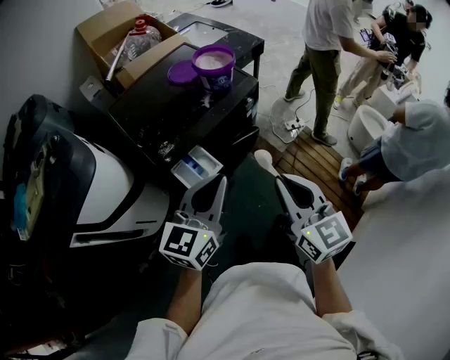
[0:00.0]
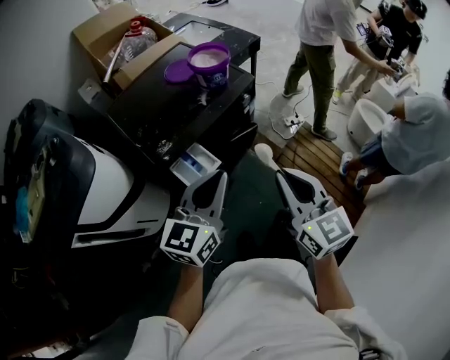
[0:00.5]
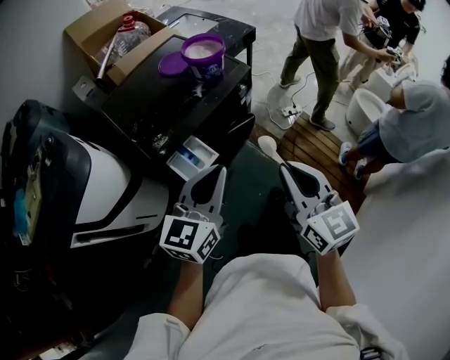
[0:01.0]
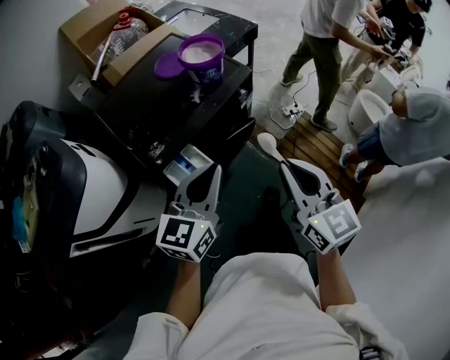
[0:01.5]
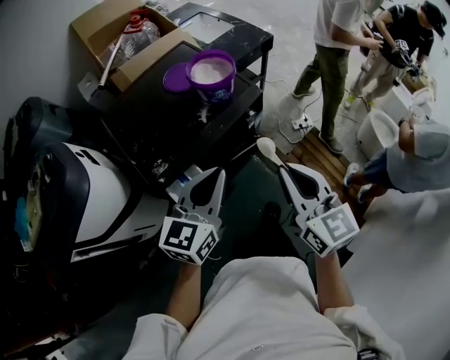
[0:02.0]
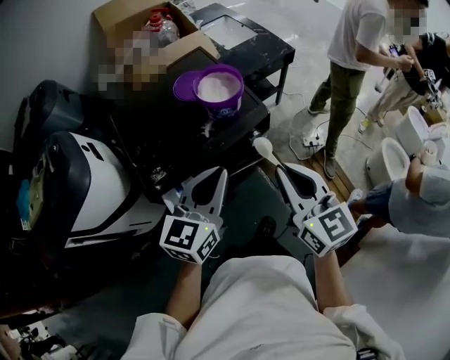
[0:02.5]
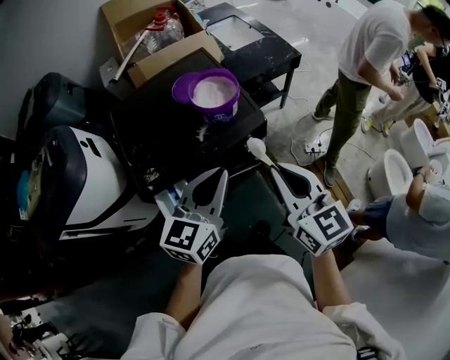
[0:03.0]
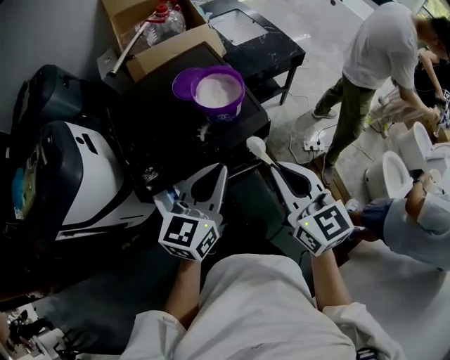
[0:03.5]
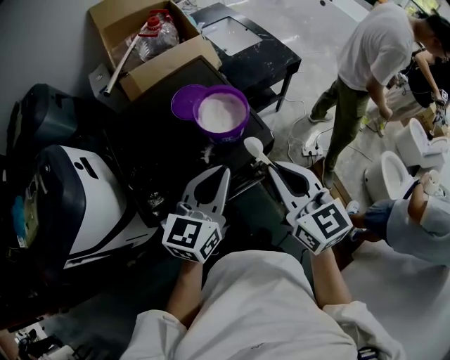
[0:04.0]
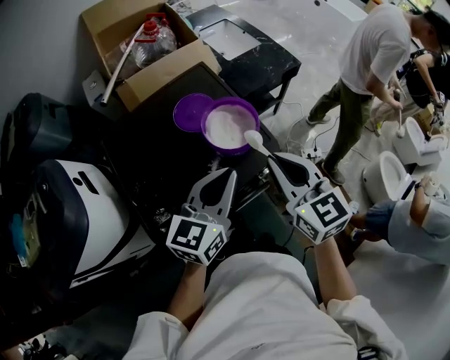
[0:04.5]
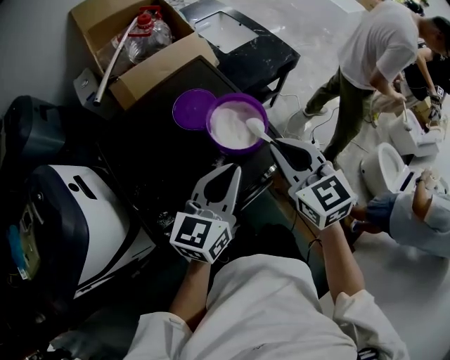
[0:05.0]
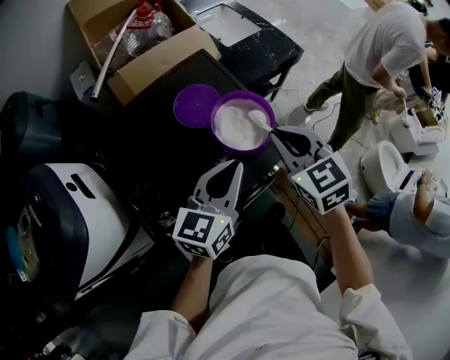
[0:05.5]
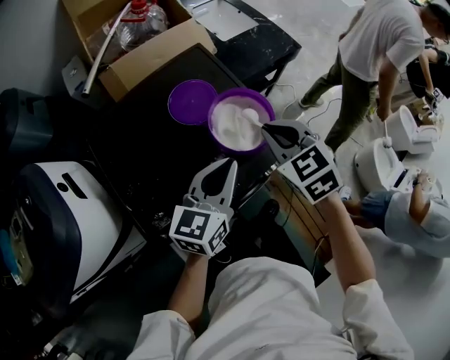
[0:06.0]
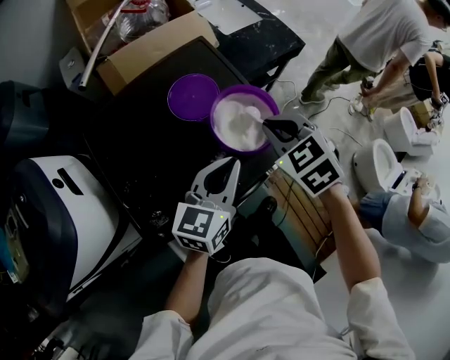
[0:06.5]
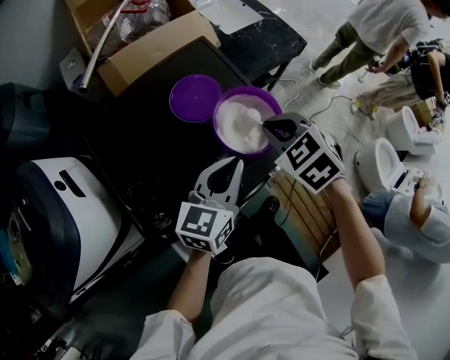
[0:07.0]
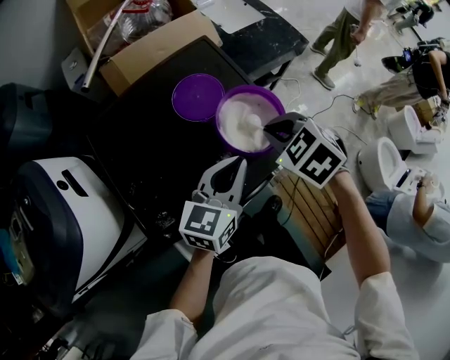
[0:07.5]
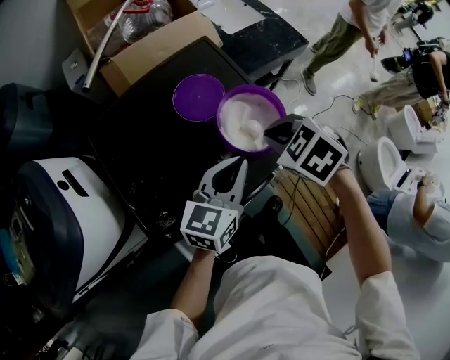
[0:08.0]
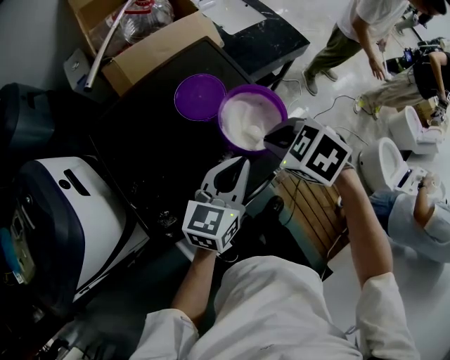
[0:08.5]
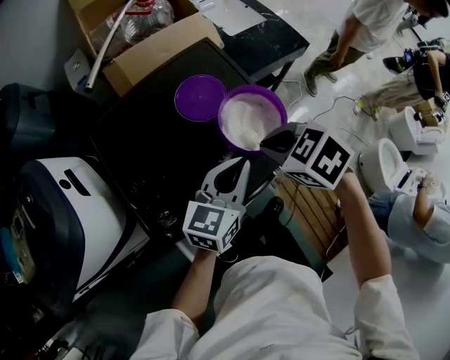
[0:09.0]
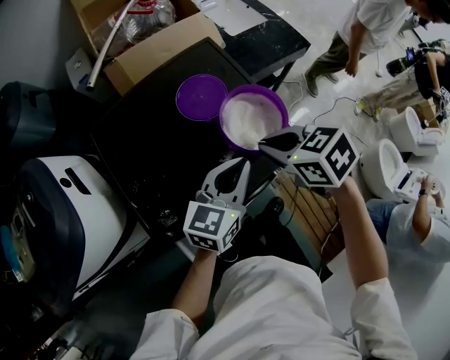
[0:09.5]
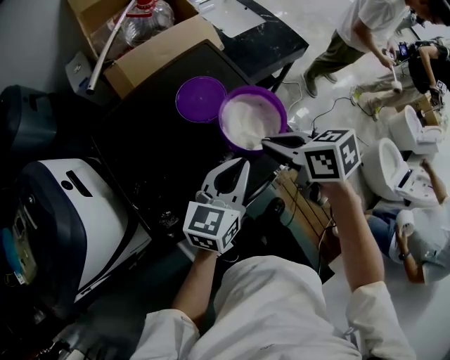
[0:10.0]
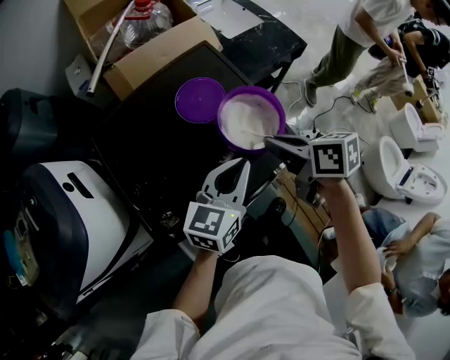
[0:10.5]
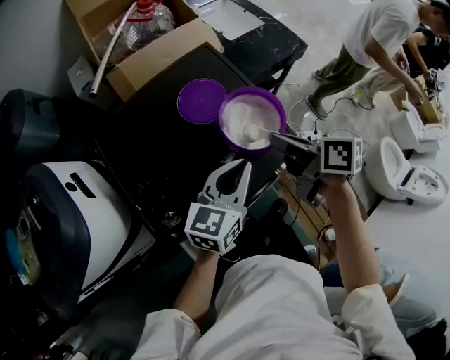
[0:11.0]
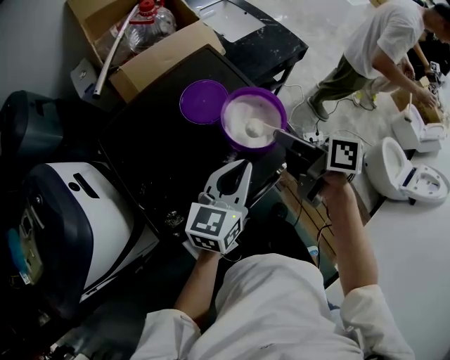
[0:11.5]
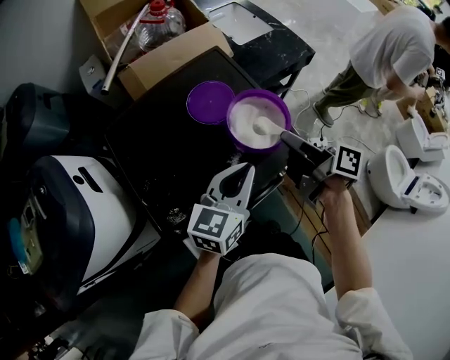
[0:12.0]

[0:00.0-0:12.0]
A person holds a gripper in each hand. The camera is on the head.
0:00.0 to 0:02.0: The grippers both shift forward by about 15 cm.
0:02.0 to 0:04.0: Both grippers move forward, about 20 cm.
0:04.0 to 0:06.0: The left gripper moves forward and downward, approximately 10 cm. Meanwhile the right gripper travels forward, downward and to the left by approximately 20 cm, and rotates about 40 degrees.
0:06.0 to 0:08.0: The right gripper rotates about 30 degrees.
0:08.0 to 0:10.0: The right gripper swivels roughly 50 degrees.
0:10.0 to 0:12.0: The right gripper moves some 5 cm, and tilts its fingers approximately 30 degrees upward.

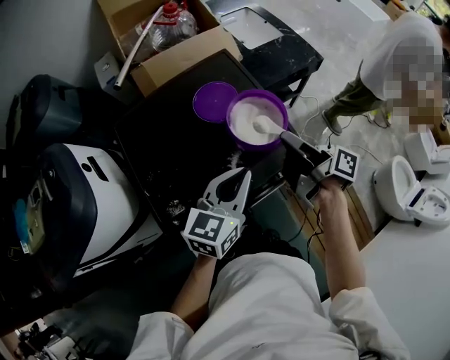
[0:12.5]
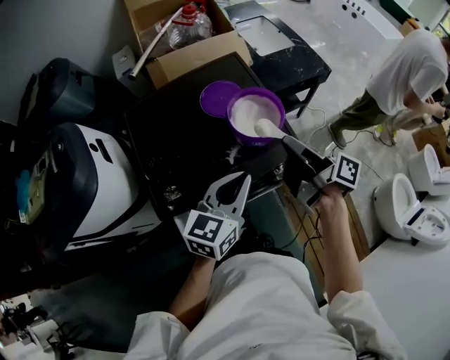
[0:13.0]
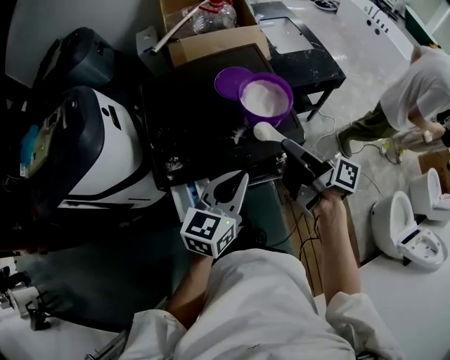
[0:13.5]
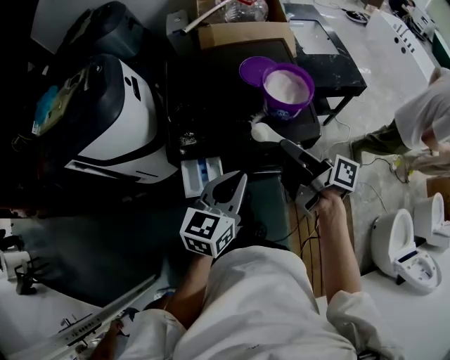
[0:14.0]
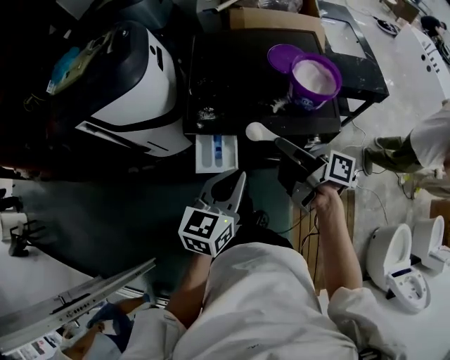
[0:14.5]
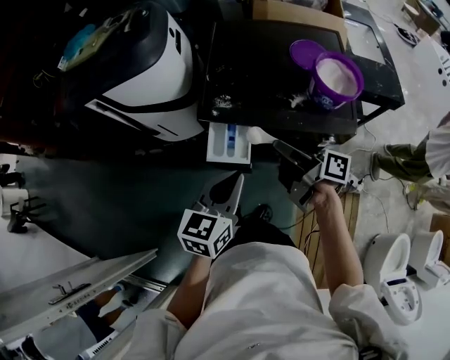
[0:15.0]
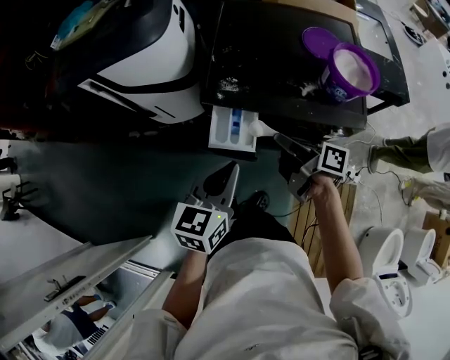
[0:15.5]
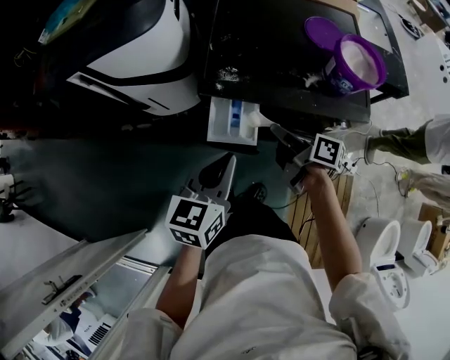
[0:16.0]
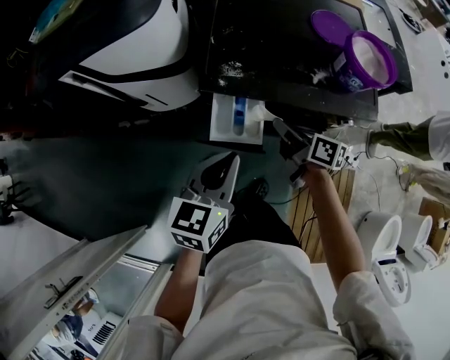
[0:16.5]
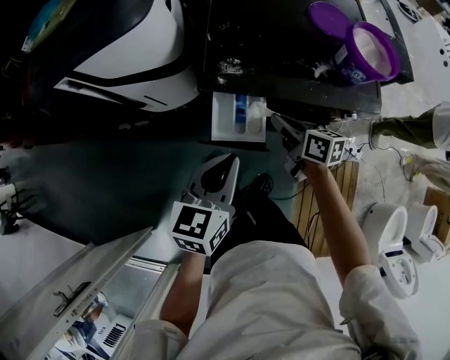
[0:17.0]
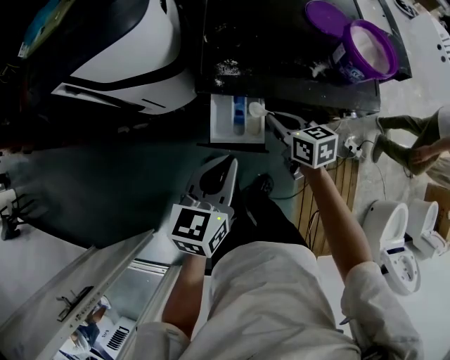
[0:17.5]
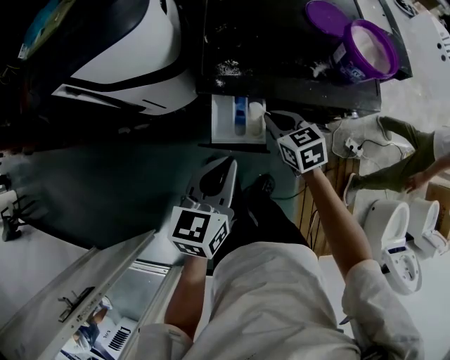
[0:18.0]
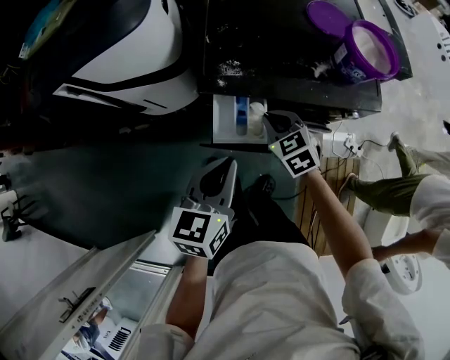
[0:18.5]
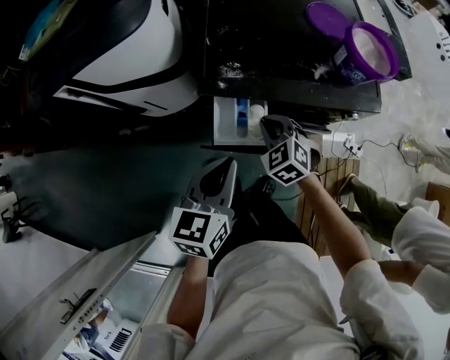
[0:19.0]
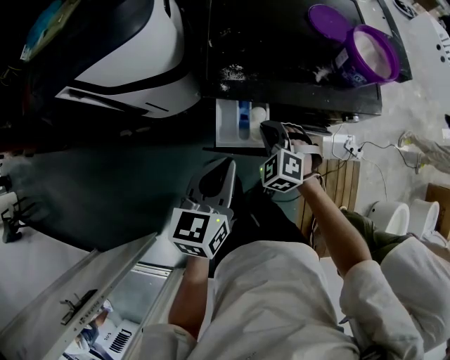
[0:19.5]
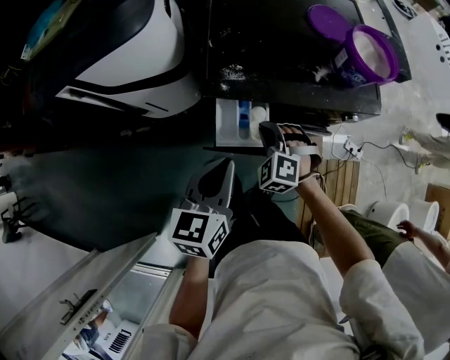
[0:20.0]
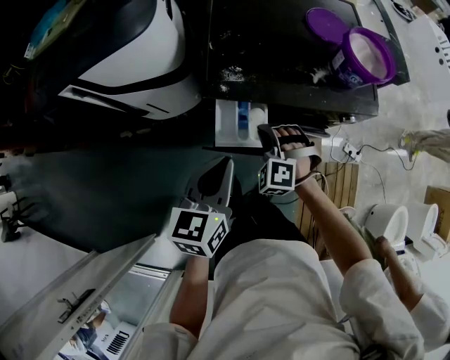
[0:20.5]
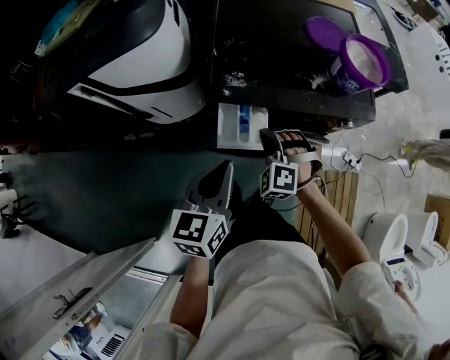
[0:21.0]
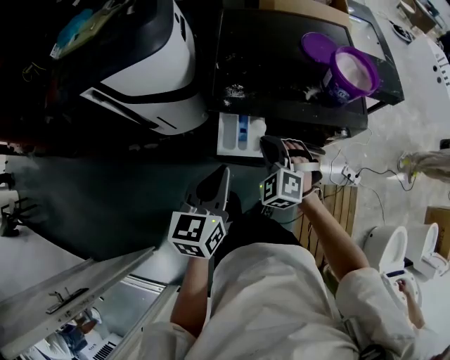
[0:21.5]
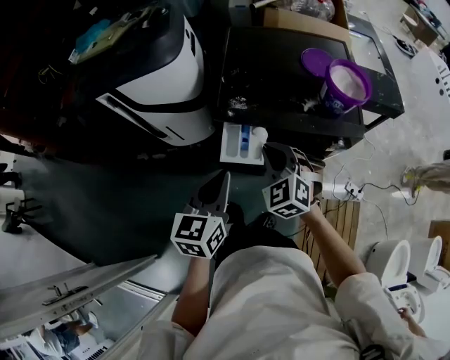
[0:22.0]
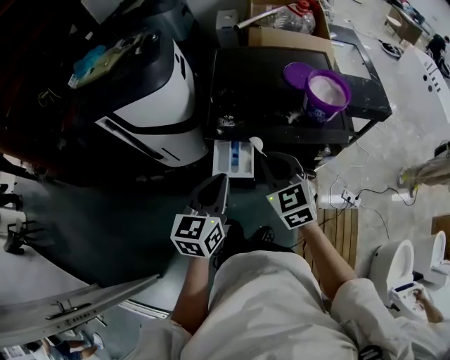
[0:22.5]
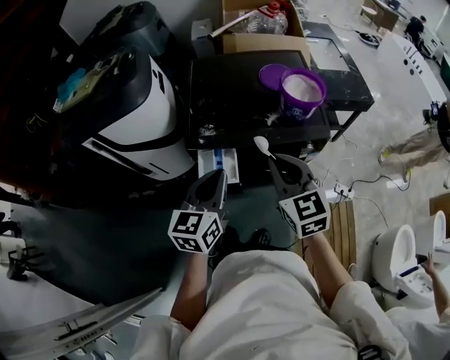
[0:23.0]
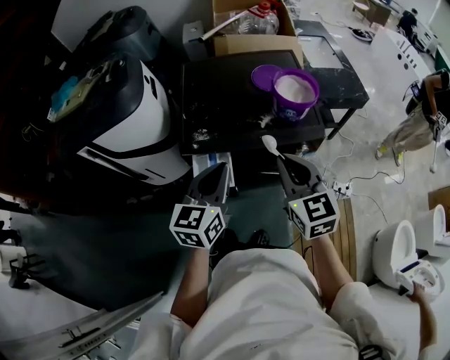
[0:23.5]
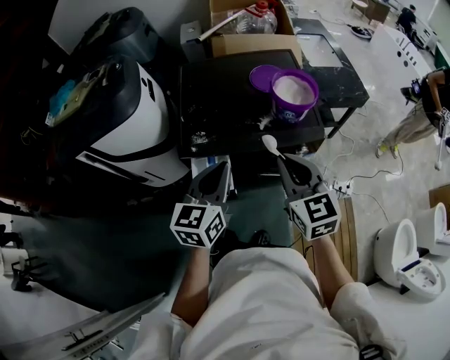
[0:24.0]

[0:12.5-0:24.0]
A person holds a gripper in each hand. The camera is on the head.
0:12.5 to 0:14.5: The right gripper shifts by some 20 cm, and changes its angle by roughly 40 degrees. The left gripper changes place by approximately 25 cm, and rotates approximately 30 degrees.
0:14.5 to 0:16.5: The left gripper heads to the left and downward, covering some 10 cm. Meanwhile the right gripper shifts about 20 cm downward and to the left, and rotates about 30 degrees.
0:16.5 to 0:18.5: The right gripper shifts by some 5 cm, and rotates around the line of its fingers by roughly 60 degrees, counterclockwise from behind.
0:18.5 to 0:20.0: The right gripper swivels roughly 40 degrees.
0:20.0 to 0:22.0: The right gripper heads upward, covering roughly 15 cm, and rotates some 20 degrees. Meanwhile the left gripper heads upward, covering approximately 5 cm.
0:22.0 to 0:24.0: The left gripper goes approximately 15 cm to the right and forward. Meanwhile the right gripper goes roughly 20 cm to the right and upward, and rotates about 40 degrees.

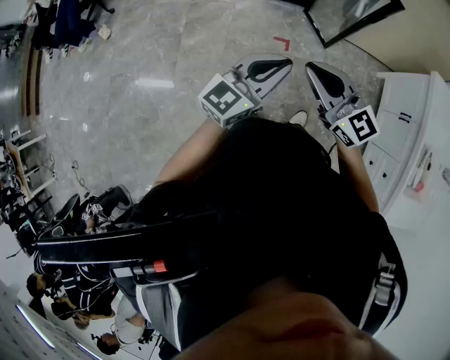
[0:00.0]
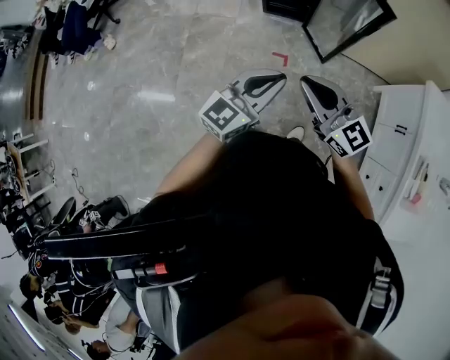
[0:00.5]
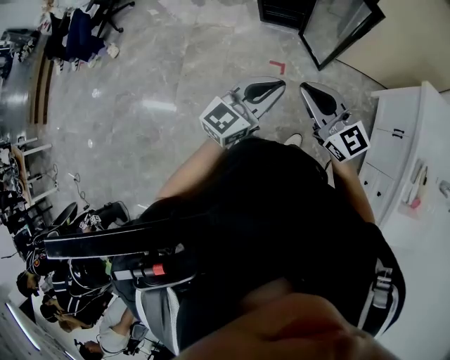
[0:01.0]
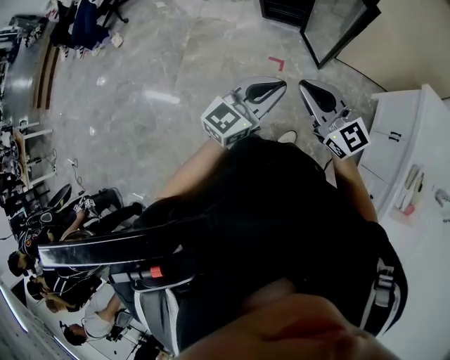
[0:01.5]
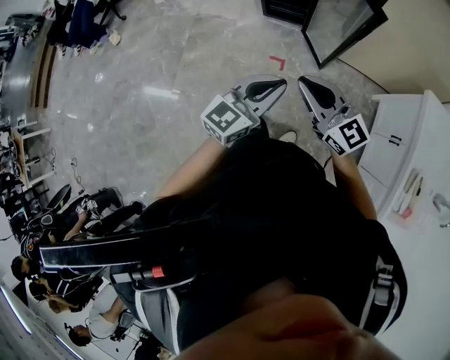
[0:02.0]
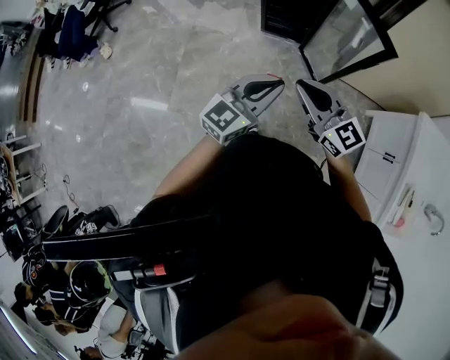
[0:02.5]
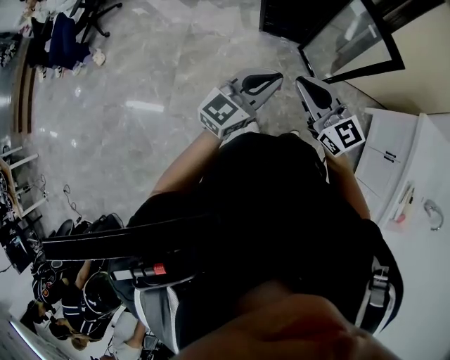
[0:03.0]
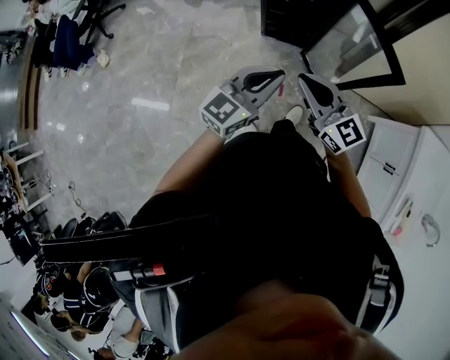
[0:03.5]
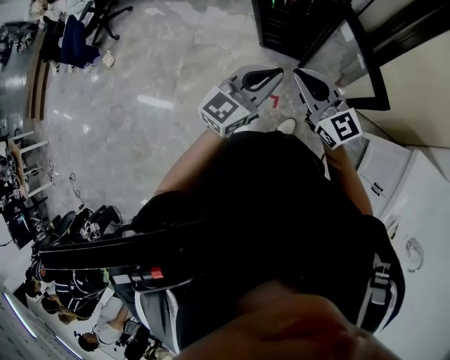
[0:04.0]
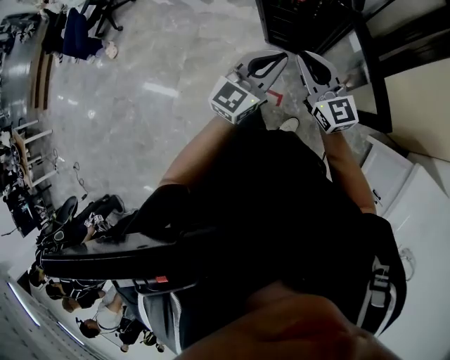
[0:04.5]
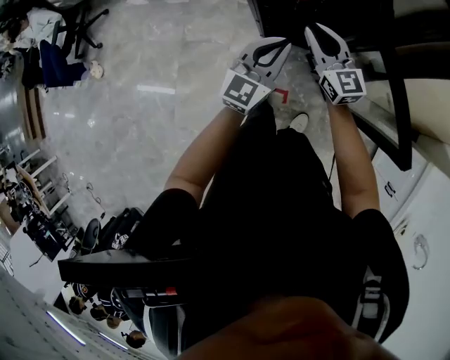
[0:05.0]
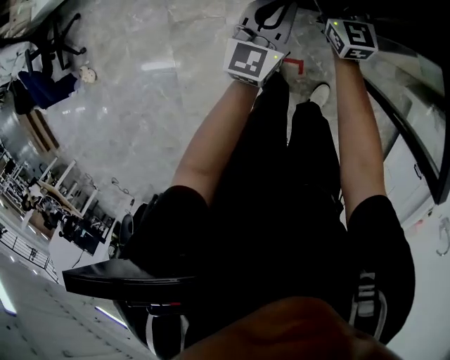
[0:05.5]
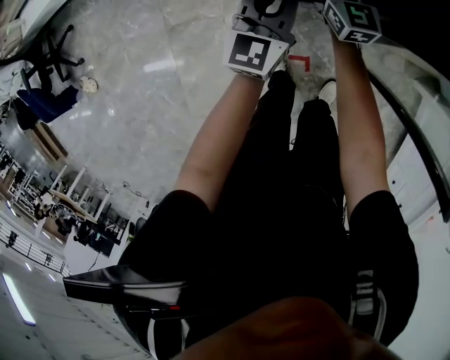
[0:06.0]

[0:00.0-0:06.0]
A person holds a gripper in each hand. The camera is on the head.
0:00.0 to 0:02.0: Both grippers travel together to the right, about 10 cm.
0:02.0 to 0:04.0: The grippers both shift forward by some 35 cm.
0:04.0 to 0:06.0: The grippers both shift forward and downward by approximately 50 cm. The right gripper rotates about 40 degrees, and opens.
